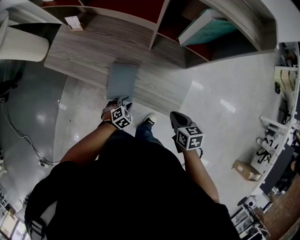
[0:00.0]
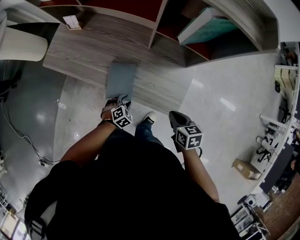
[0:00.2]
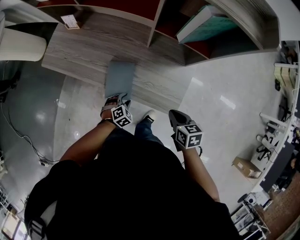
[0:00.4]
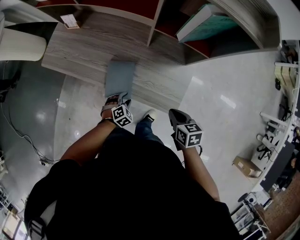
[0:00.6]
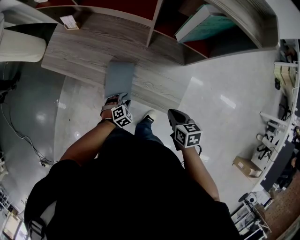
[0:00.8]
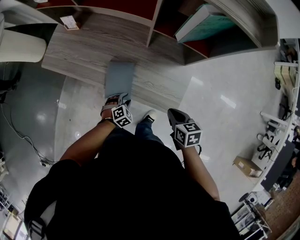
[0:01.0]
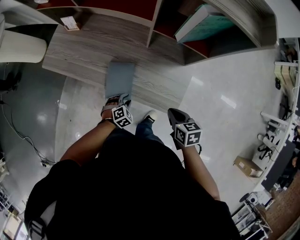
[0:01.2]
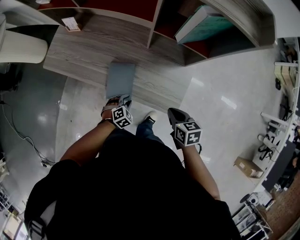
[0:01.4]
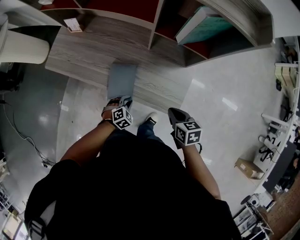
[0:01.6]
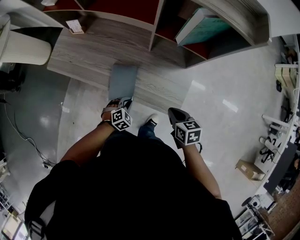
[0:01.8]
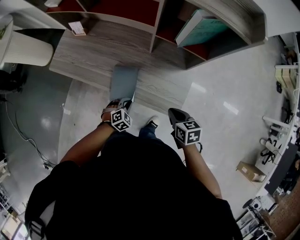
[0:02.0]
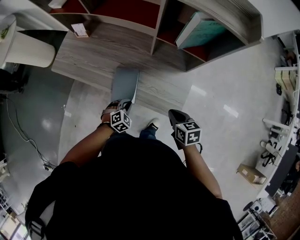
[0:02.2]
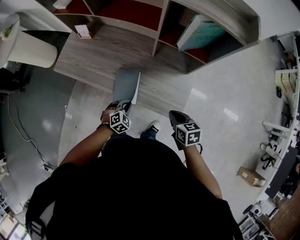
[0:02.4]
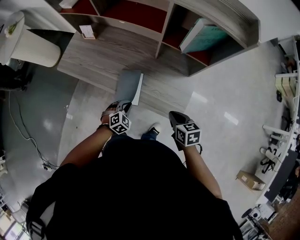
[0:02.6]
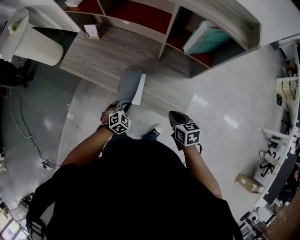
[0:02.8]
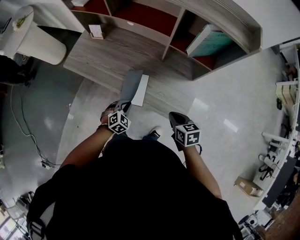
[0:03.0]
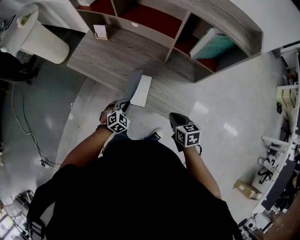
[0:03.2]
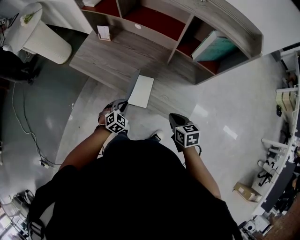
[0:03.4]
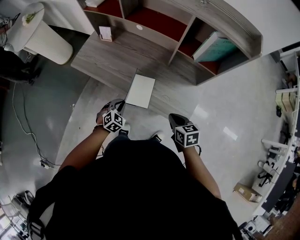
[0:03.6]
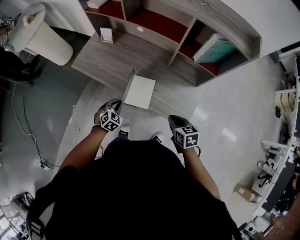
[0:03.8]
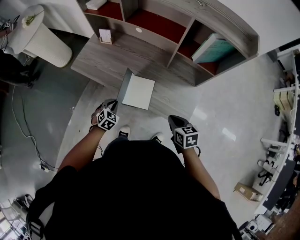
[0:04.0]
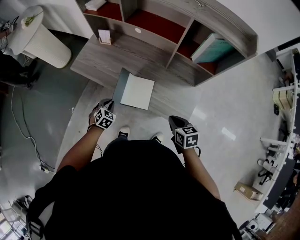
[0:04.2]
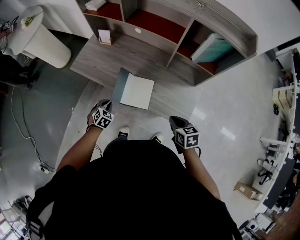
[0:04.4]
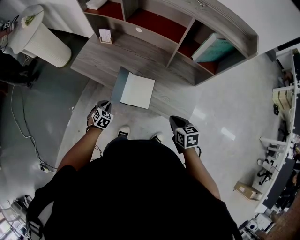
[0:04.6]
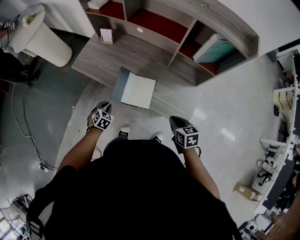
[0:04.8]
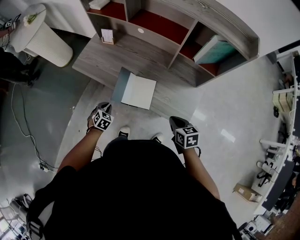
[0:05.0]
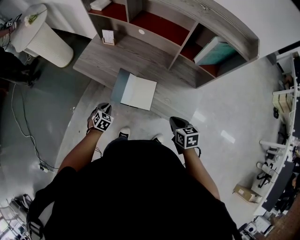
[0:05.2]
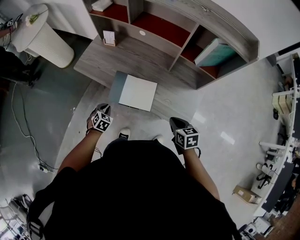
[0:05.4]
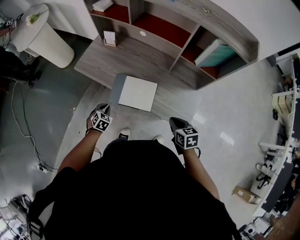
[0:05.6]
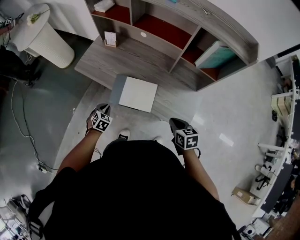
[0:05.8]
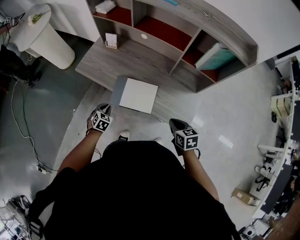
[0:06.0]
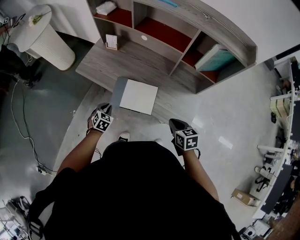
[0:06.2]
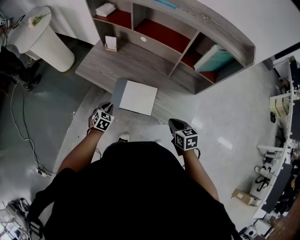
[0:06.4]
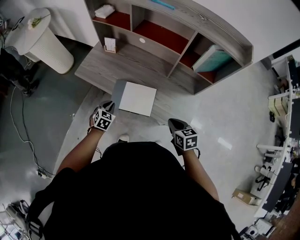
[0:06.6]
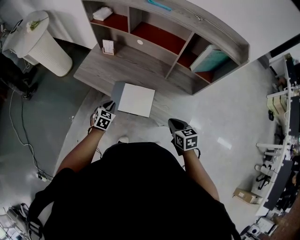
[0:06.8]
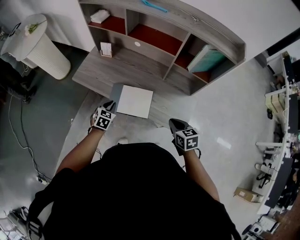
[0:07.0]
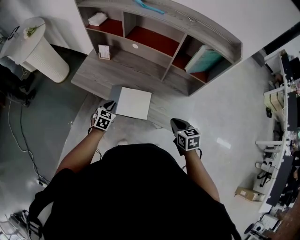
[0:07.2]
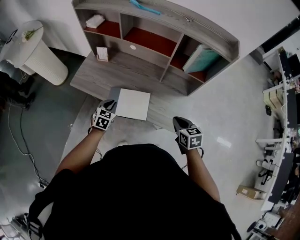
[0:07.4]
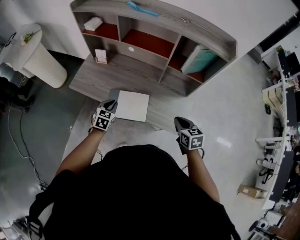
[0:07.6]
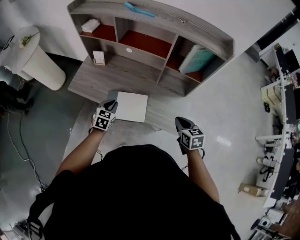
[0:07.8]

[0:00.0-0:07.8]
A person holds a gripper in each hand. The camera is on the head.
0:00.0 to 0:01.6: The grippers stay close to where they were, moving slightly.
0:01.6 to 0:03.2: The right gripper goes some 5 cm to the left, while the left gripper heads upward and to the left, covering some 15 cm.
0:03.2 to 0:04.6: The left gripper heads to the left, covering approximately 15 cm, and turns by roughly 20 degrees.
0:04.6 to 0:06.2: The grippers make only small movements.
0:06.2 to 0:07.8: The left gripper moves upward, to the right and forward, about 15 cm; the right gripper moves to the right and upward, roughly 10 cm.

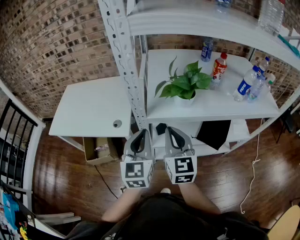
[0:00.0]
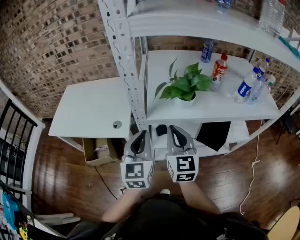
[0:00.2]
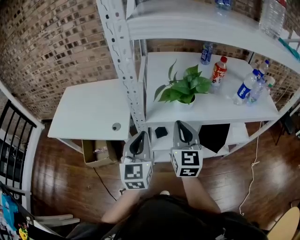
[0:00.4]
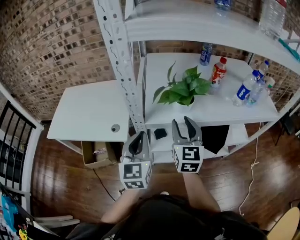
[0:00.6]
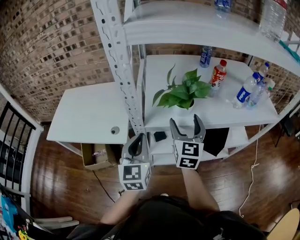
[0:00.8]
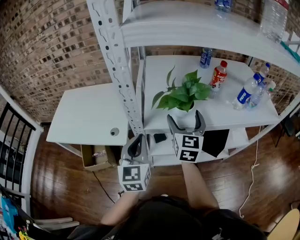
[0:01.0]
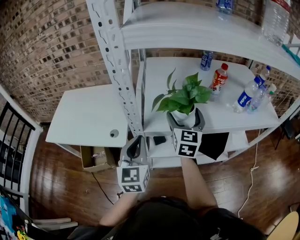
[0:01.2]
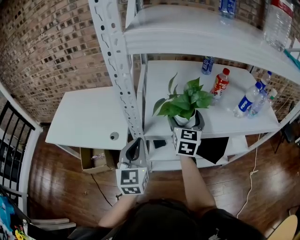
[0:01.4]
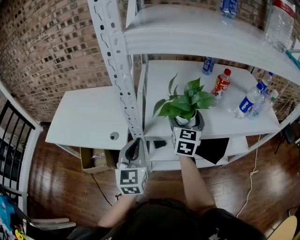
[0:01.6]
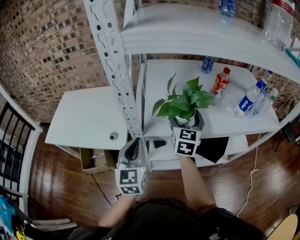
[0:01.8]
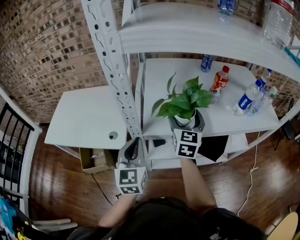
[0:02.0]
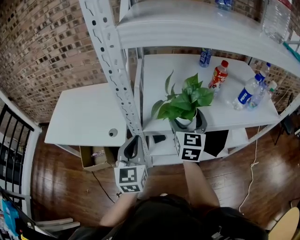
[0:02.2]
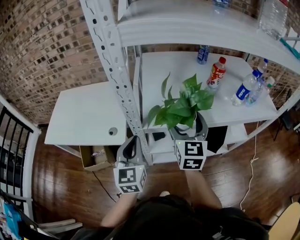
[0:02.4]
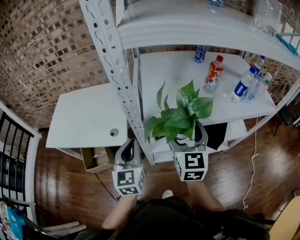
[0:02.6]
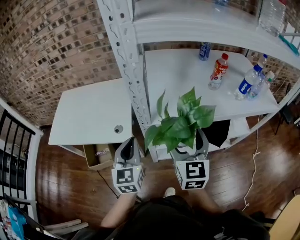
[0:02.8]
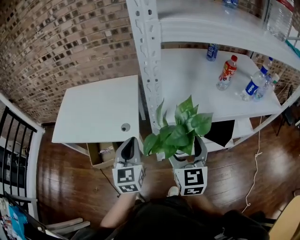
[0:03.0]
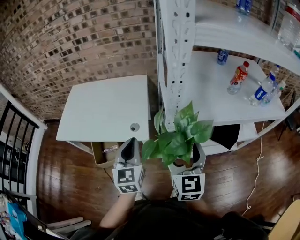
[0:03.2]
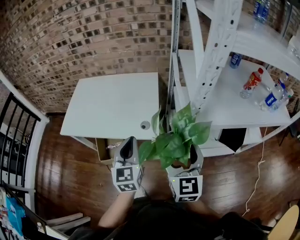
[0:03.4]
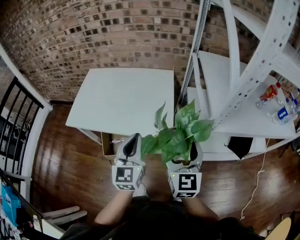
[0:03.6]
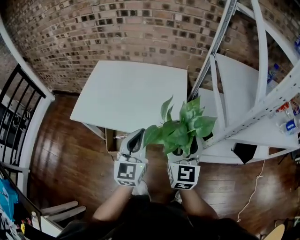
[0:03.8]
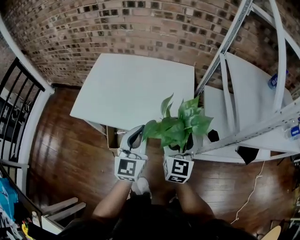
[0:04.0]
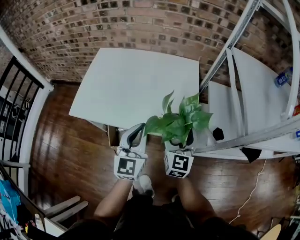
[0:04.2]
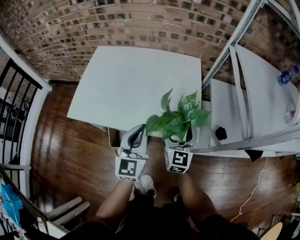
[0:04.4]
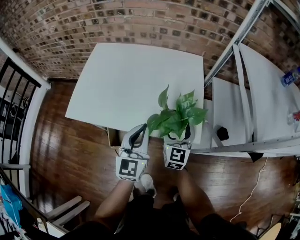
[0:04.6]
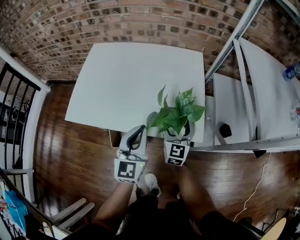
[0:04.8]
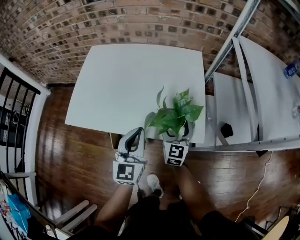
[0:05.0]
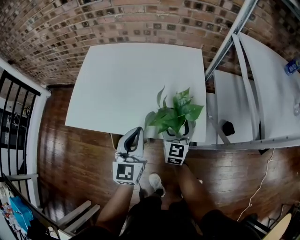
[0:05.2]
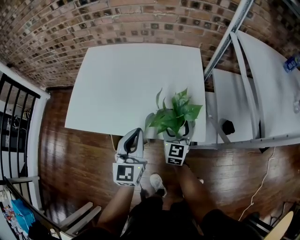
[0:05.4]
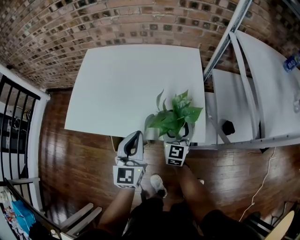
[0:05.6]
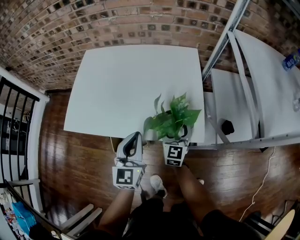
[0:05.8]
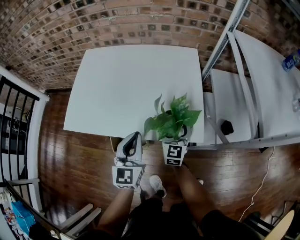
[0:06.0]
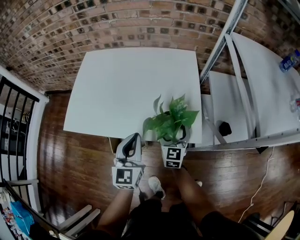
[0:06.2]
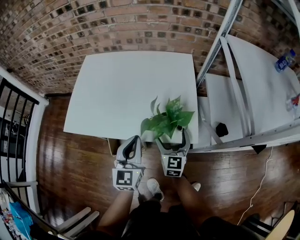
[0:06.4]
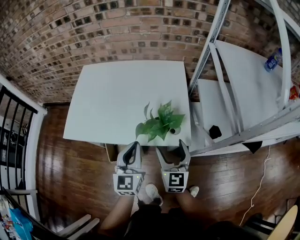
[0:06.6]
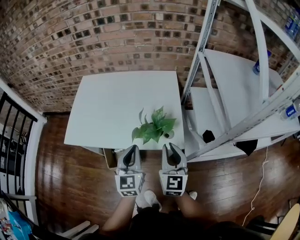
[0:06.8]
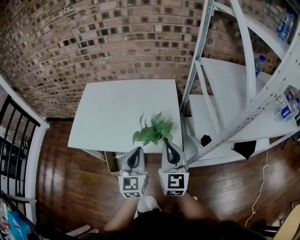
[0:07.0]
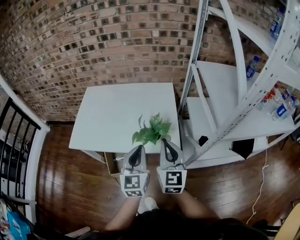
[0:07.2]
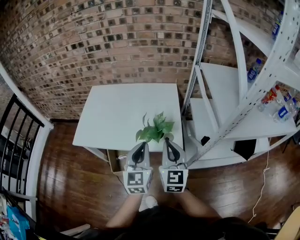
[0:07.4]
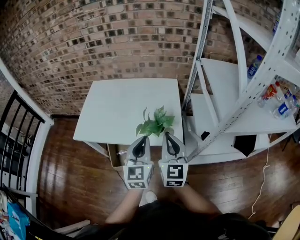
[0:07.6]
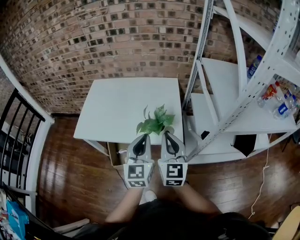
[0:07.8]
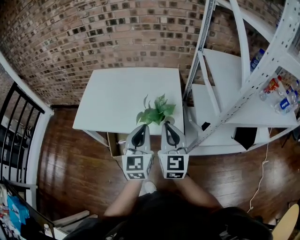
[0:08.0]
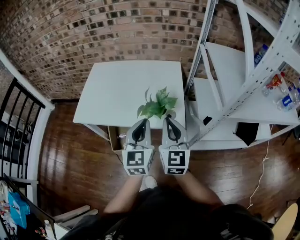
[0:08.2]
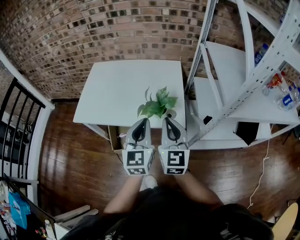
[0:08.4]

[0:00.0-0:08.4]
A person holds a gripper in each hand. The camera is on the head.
0:00.0 to 0:01.4: The right gripper is displaced forward and to the right by about 20 cm, and opens its fingers.
0:01.4 to 0:02.8: The left gripper shifts roughly 5 cm to the left; the right gripper moves backward, some 15 cm.
0:02.8 to 0:04.2: The left gripper heads to the left, covering approximately 35 cm. Meanwhile the right gripper is displaced to the left and downward by approximately 40 cm.
0:04.2 to 0:05.6: The right gripper heads downward and forward, covering approximately 15 cm; the left gripper moves downward, approximately 5 cm.
0:05.6 to 0:07.0: The right gripper shifts roughly 25 cm upward and backward, and closes its fingers, while the left gripper heads upward, to the right and backward, covering roughly 10 cm.
0:07.0 to 0:08.4: The right gripper shifts by some 5 cm. Meanwhile the left gripper travels upward by some 5 cm.

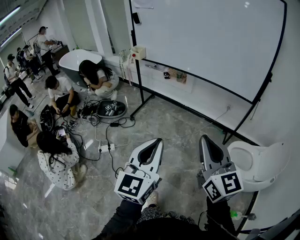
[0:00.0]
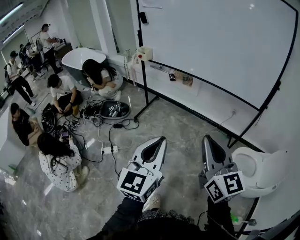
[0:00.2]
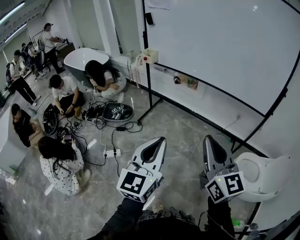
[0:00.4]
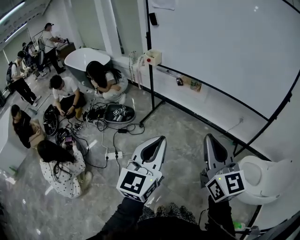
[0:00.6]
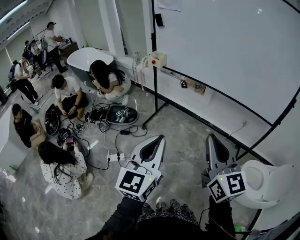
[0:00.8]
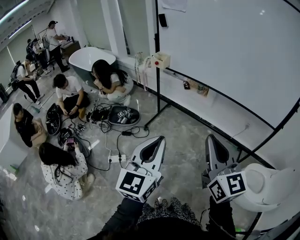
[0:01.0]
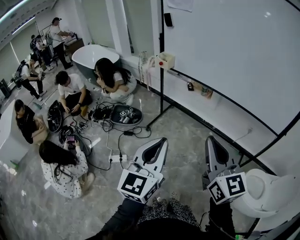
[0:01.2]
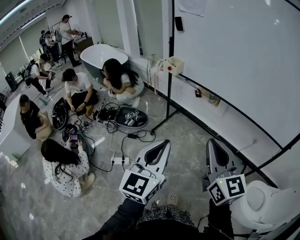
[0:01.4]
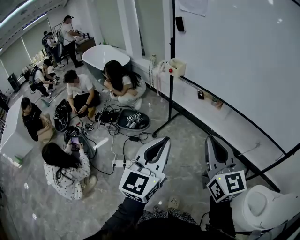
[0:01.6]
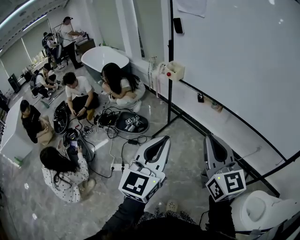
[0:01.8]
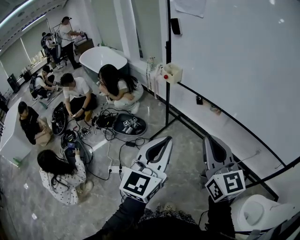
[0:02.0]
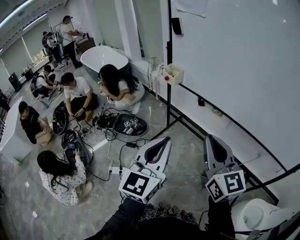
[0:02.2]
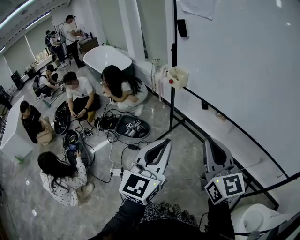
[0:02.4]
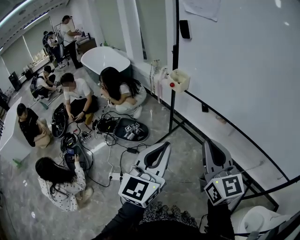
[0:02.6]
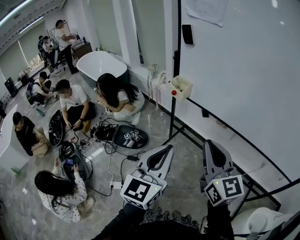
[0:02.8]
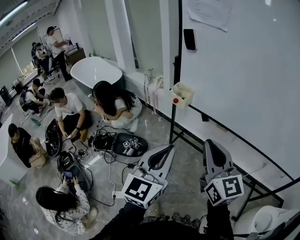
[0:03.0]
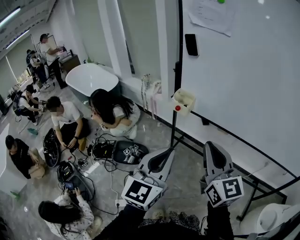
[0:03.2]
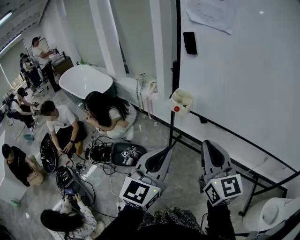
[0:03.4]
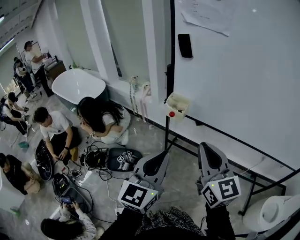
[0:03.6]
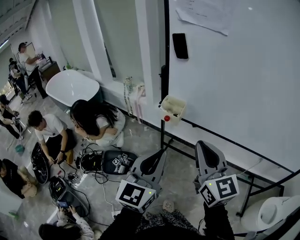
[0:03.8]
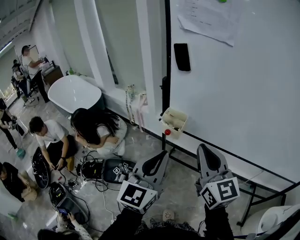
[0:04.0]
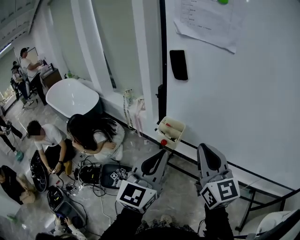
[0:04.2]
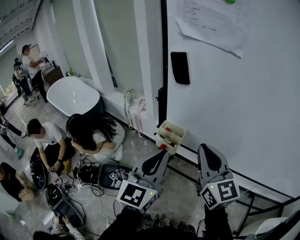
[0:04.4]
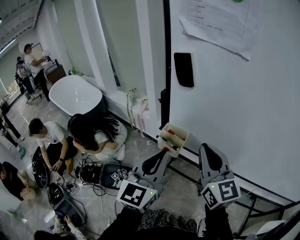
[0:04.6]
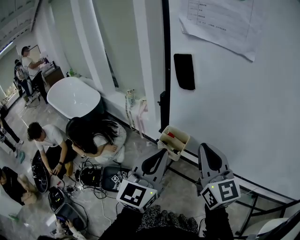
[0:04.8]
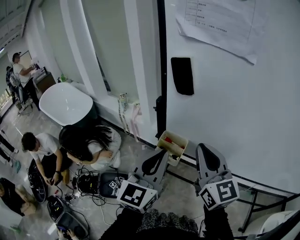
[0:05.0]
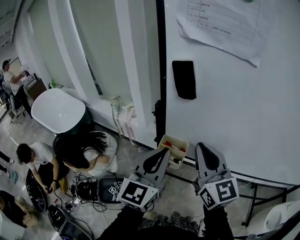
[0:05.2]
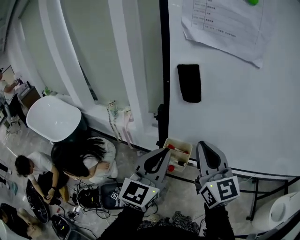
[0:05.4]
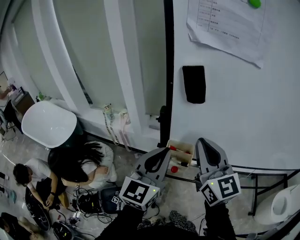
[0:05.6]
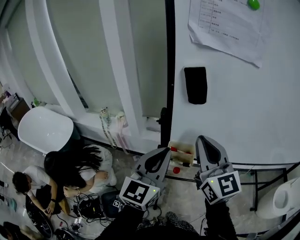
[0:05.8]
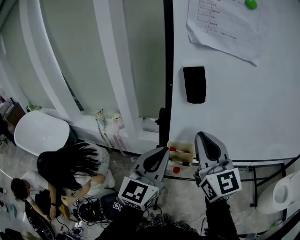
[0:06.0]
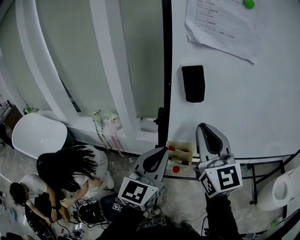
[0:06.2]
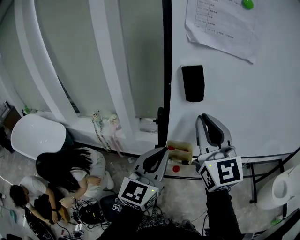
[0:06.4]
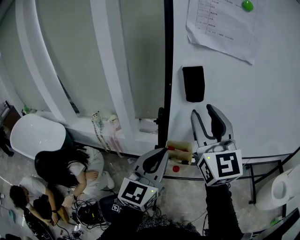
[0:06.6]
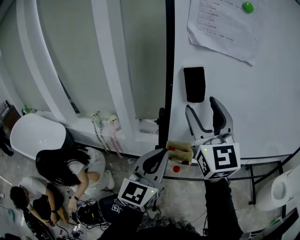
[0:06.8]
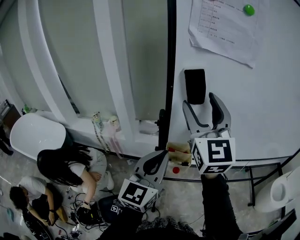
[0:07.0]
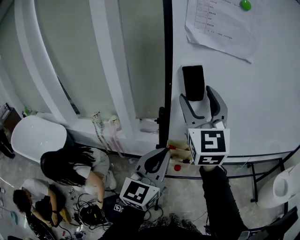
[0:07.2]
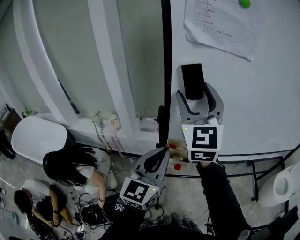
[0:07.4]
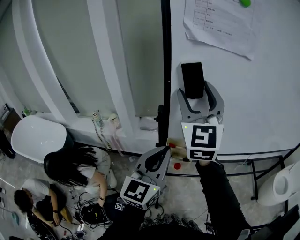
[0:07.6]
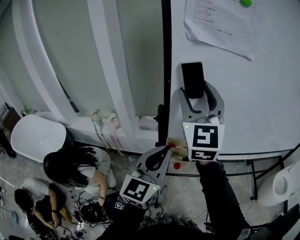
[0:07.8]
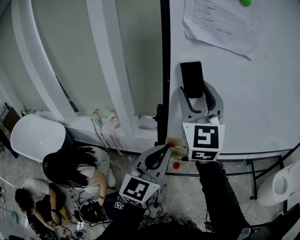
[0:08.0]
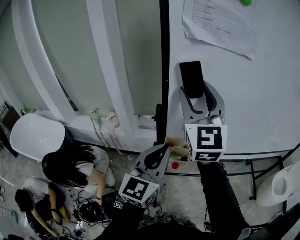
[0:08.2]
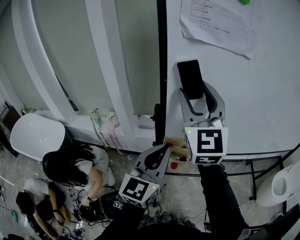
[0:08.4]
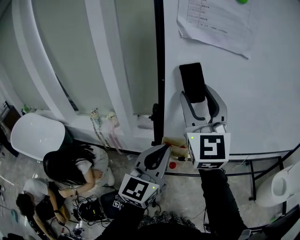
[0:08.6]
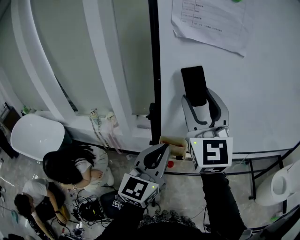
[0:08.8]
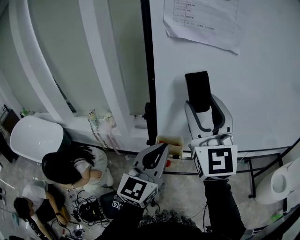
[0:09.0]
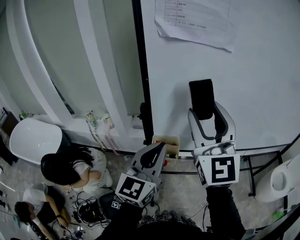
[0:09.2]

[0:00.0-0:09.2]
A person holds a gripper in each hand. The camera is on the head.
0:00.0 to 0:01.6: The two grippers go roughly 35 cm forward and to the left.
0:01.6 to 0:03.0: The two grippers go about 25 cm forward.
0:03.0 to 0:04.6: The grippers both shift forward by about 30 cm.
0:04.6 to 0:06.2: The left gripper ends up about 15 cm from where it was, and turns by about 30 degrees. The right gripper changes place by some 15 cm, and swivels approximately 30 degrees.
0:06.2 to 0:07.6: The right gripper heads upward and forward, covering about 10 cm, rotates some 20 degrees, and opens its fingers.
0:07.6 to 0:09.2: The right gripper is displaced to the right and backward by roughly 10 cm.
